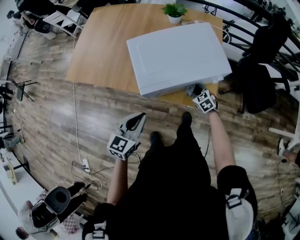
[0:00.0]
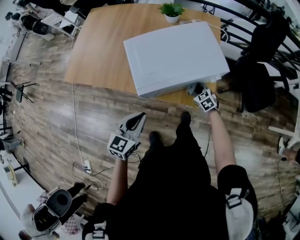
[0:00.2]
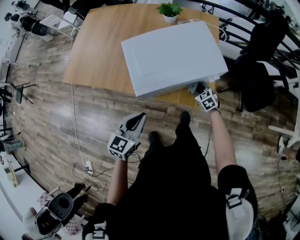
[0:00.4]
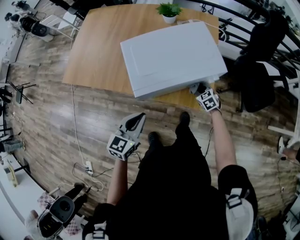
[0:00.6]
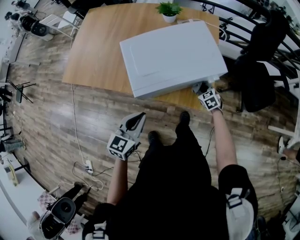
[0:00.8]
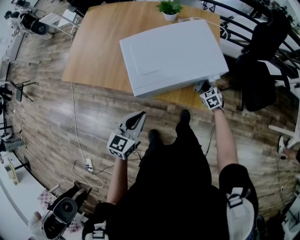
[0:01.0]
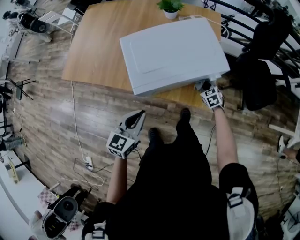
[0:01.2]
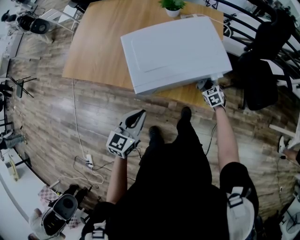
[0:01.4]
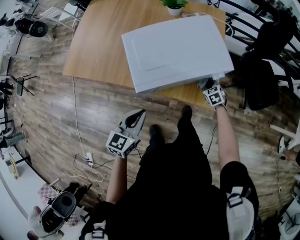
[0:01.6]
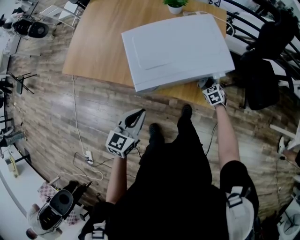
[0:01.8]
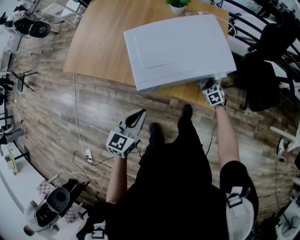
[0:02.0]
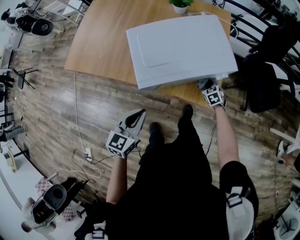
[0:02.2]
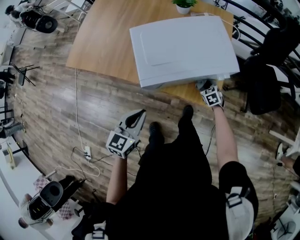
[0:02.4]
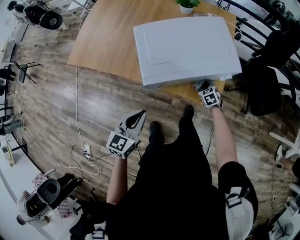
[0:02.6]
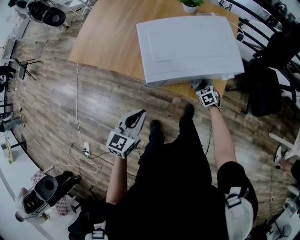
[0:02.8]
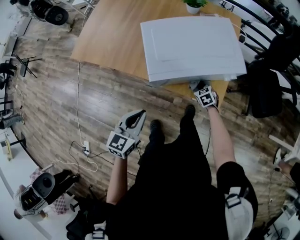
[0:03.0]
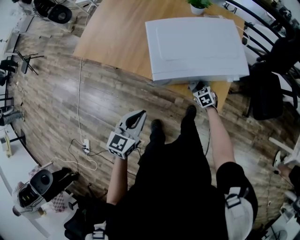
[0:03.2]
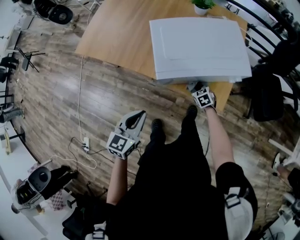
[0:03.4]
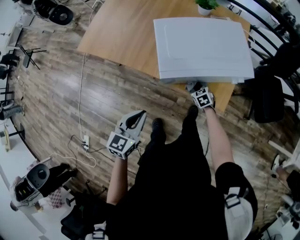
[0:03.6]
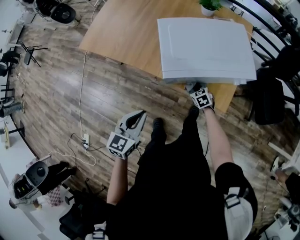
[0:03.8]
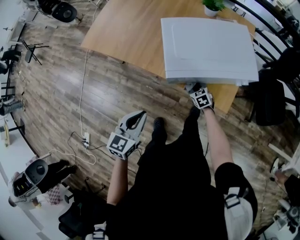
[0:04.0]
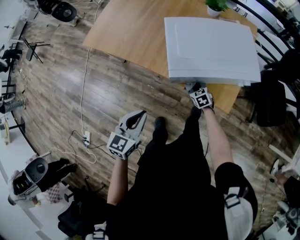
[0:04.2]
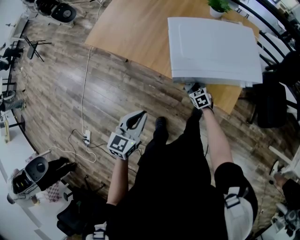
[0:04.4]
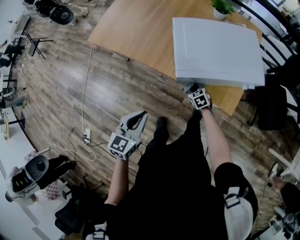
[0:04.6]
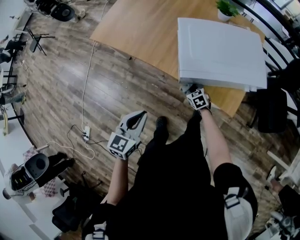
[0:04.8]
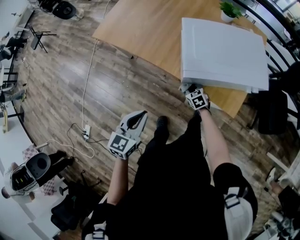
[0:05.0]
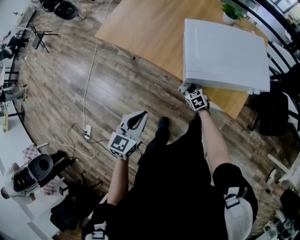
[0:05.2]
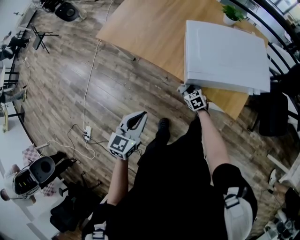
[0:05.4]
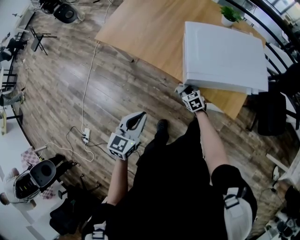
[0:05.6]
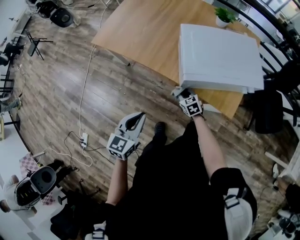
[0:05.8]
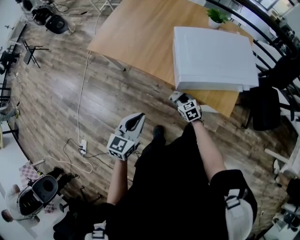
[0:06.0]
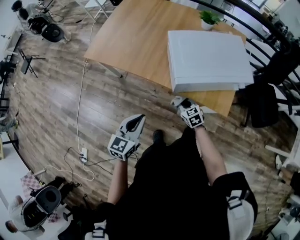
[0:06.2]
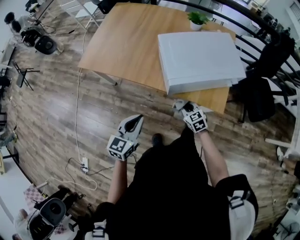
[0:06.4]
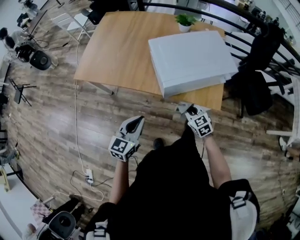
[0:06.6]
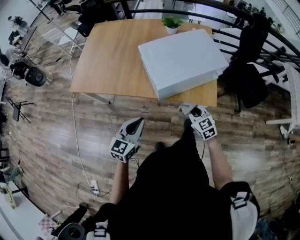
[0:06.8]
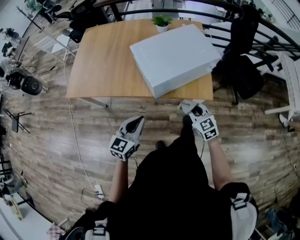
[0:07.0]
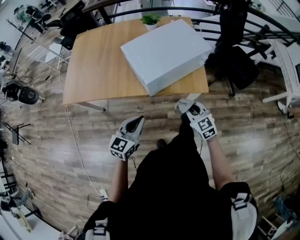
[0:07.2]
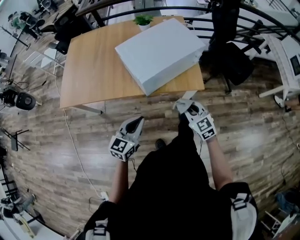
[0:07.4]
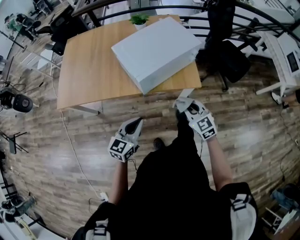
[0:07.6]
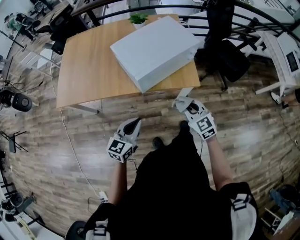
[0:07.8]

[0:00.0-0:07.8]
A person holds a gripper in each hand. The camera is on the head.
0:00.0 to 0:01.6: The right gripper heads to the right, covering some 10 cm.
0:01.6 to 0:03.2: The left gripper is displaced to the left and backward by about 10 cm. The right gripper shifts approximately 15 cm to the left.
0:03.2 to 0:04.6: The left gripper is displaced to the left by about 10 cm. The right gripper goes roughly 15 cm to the left.
0:04.6 to 0:06.2: The right gripper shifts approximately 10 cm upward, to the left and backward.
0:06.2 to 0:07.8: The right gripper goes roughly 20 cm upward, and swivels some 30 degrees, while the left gripper ends up some 10 cm from where it was, and rotates some 30 degrees.

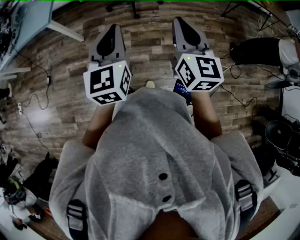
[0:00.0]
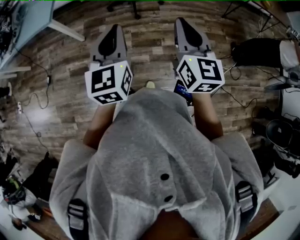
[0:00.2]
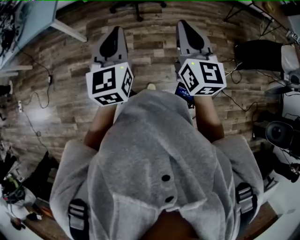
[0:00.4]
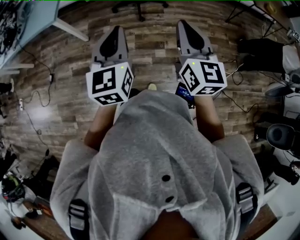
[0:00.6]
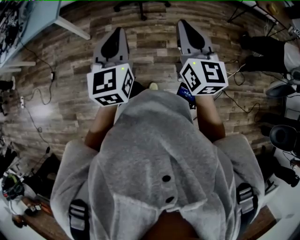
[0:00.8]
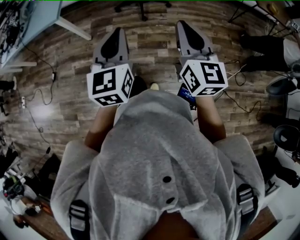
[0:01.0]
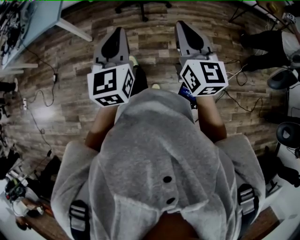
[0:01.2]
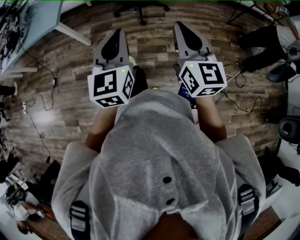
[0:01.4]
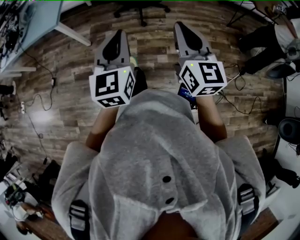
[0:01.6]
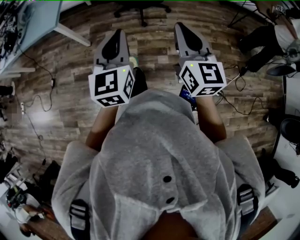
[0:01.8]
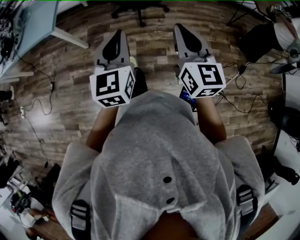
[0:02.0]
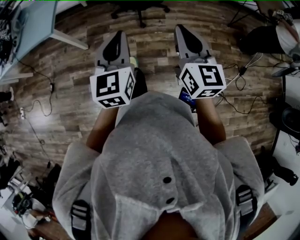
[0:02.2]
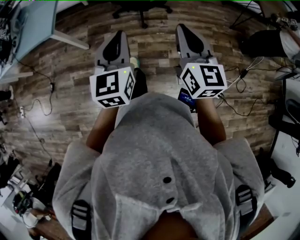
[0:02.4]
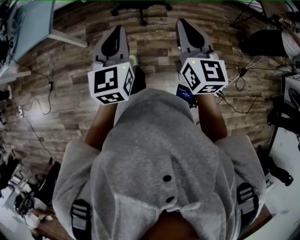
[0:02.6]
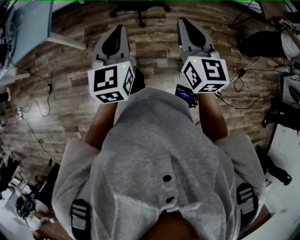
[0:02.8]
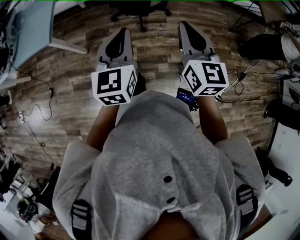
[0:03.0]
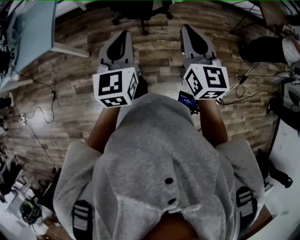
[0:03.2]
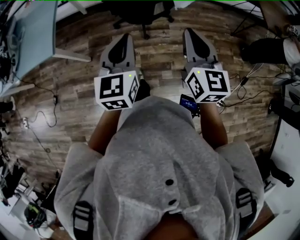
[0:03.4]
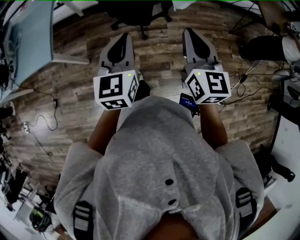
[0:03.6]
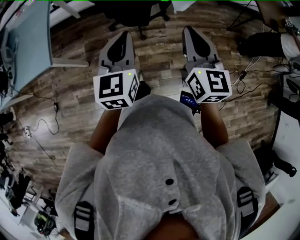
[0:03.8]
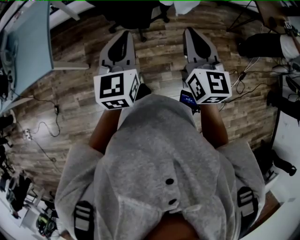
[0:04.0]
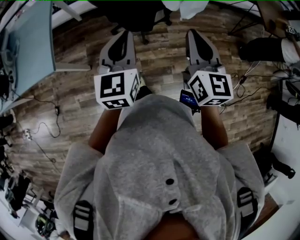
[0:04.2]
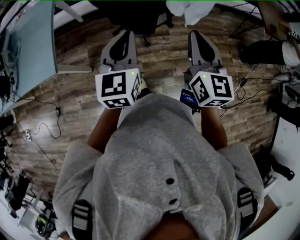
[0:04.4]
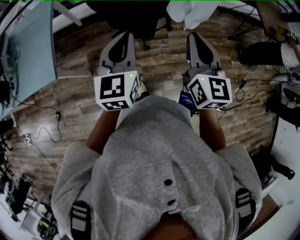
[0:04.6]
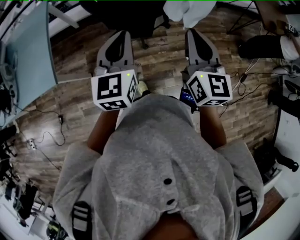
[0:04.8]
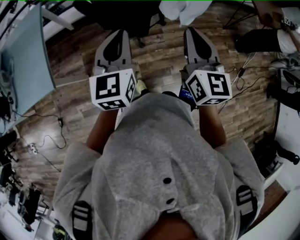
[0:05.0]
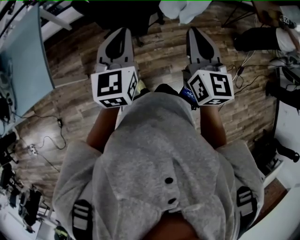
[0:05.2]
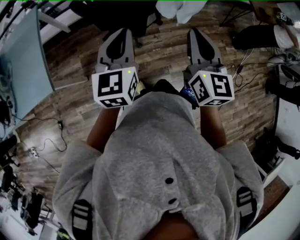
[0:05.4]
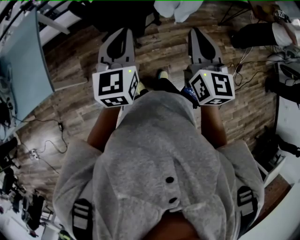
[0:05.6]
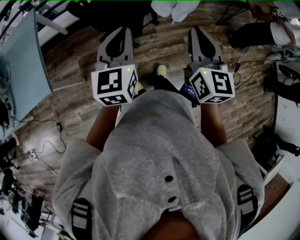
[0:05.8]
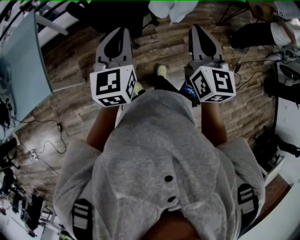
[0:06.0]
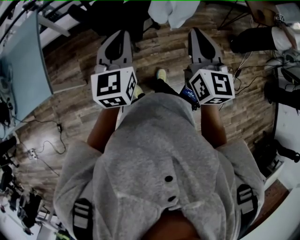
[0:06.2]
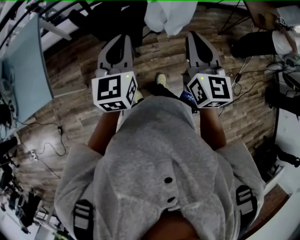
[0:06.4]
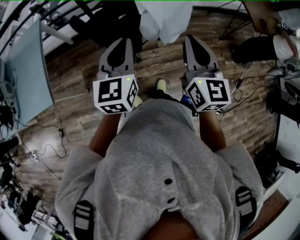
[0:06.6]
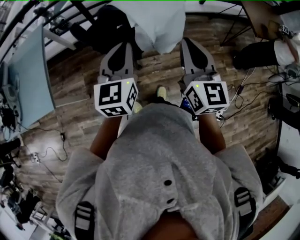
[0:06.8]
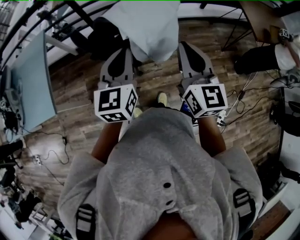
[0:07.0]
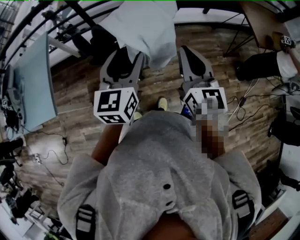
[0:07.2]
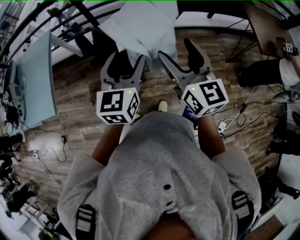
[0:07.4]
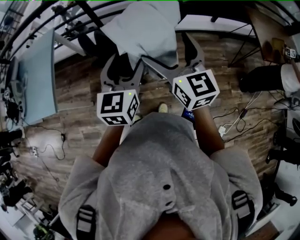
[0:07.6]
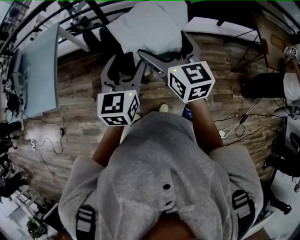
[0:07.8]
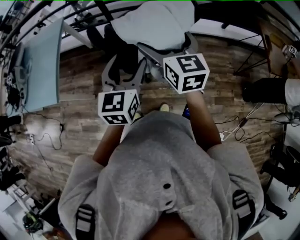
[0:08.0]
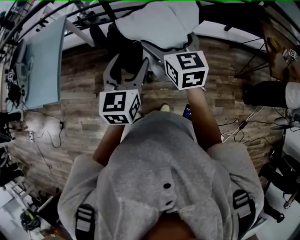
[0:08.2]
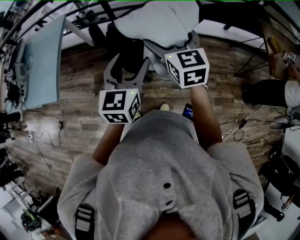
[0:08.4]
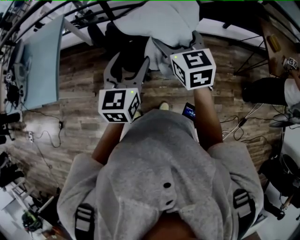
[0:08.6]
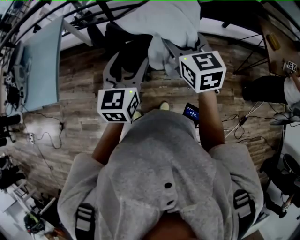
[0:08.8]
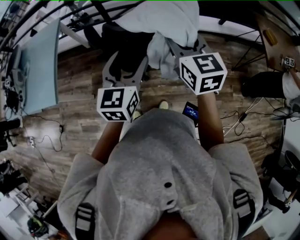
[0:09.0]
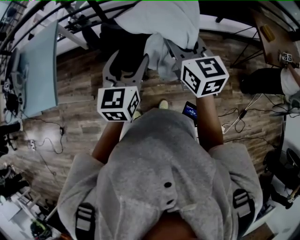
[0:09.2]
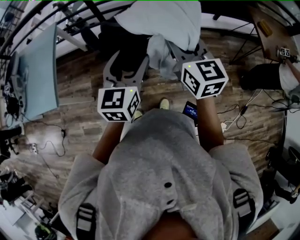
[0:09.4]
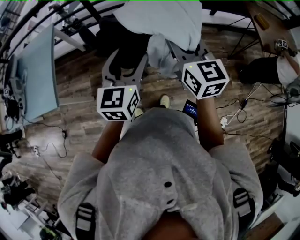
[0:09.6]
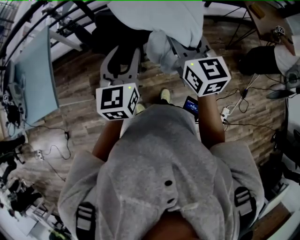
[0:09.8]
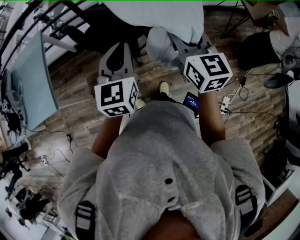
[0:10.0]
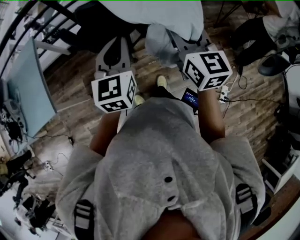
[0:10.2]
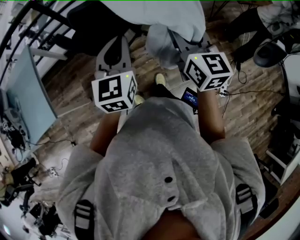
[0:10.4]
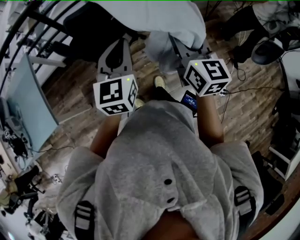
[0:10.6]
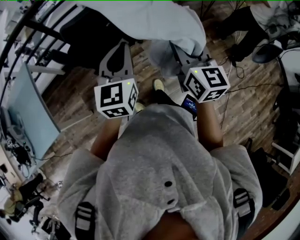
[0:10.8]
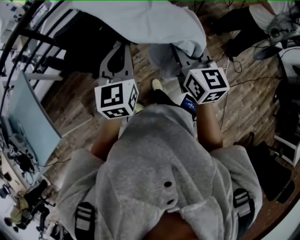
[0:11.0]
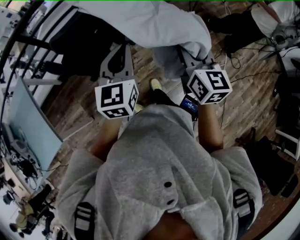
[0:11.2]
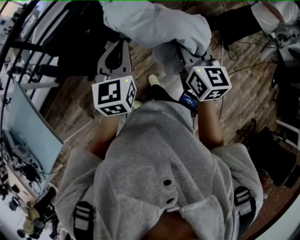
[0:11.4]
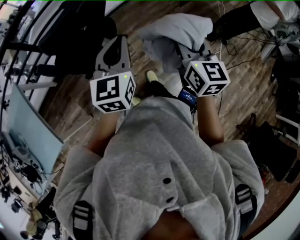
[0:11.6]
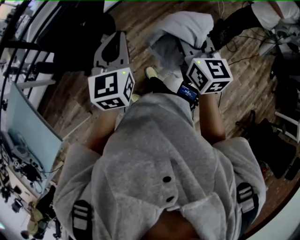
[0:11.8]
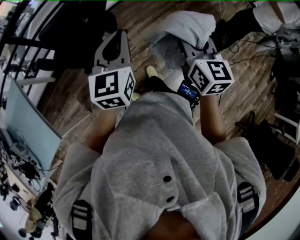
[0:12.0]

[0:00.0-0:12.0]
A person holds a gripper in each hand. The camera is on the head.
0:00.0 to 0:01.6: The grippers make only small movements.
0:01.6 to 0:03.0: Both grippers move forward, about 25 cm.
0:03.0 to 0:04.4: Both grippers move forward, about 20 cm.
0:04.4 to 0:06.0: The left gripper shifts by roughly 5 cm.
0:06.0 to 0:07.6: The left gripper is displaced to the right and forward by some 20 cm, and opens; the right gripper moves forward, about 15 cm, swivels about 30 degrees, and opens its fingers.
0:07.6 to 0:09.0: The right gripper closes.
0:09.0 to 0:10.4: The right gripper moves backward, some 15 cm, and turns by approximately 30 degrees; the left gripper goes about 10 cm backward, and closes its fingers.
0:10.4 to 0:12.0: The left gripper moves to the right, roughly 10 cm, while the right gripper goes some 15 cm to the right and backward, and changes its angle by approximately 20 degrees.

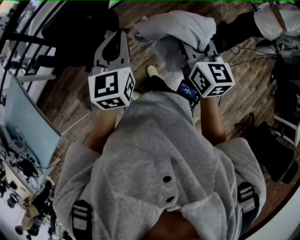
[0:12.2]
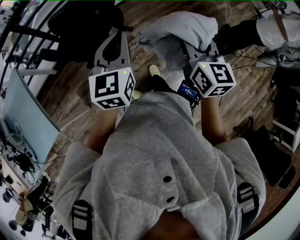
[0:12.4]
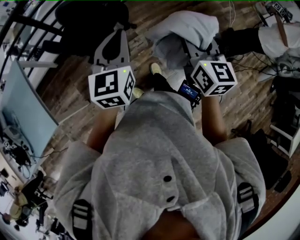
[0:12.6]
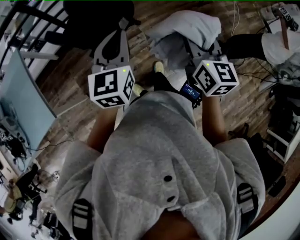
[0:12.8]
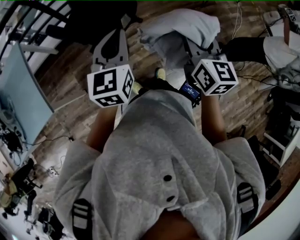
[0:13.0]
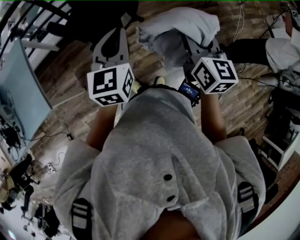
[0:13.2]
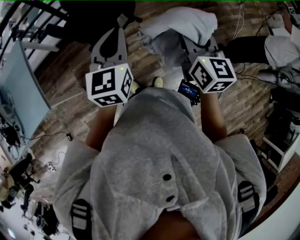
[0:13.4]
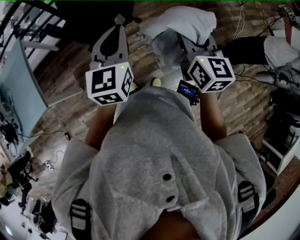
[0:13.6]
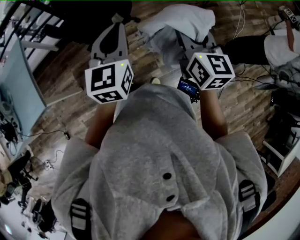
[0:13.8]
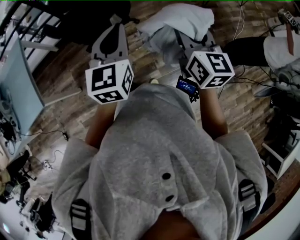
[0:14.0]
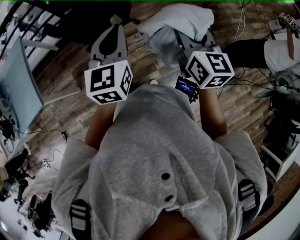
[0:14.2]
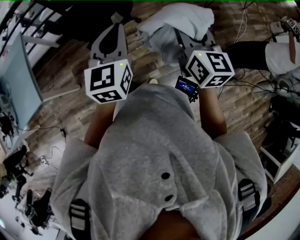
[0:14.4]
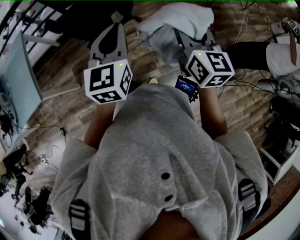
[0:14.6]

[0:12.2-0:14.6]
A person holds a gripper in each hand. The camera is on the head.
0:12.2 to 0:13.4: The left gripper travels to the left by roughly 5 cm.
0:13.4 to 0:14.6: The grippers both shift to the right by roughly 5 cm.

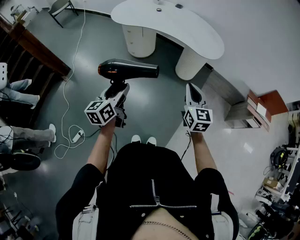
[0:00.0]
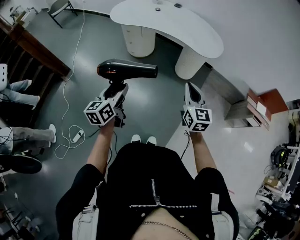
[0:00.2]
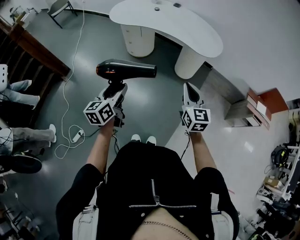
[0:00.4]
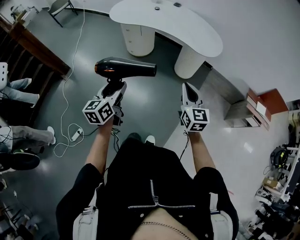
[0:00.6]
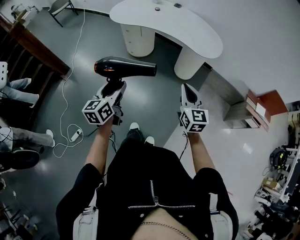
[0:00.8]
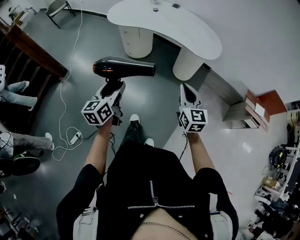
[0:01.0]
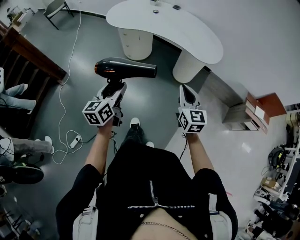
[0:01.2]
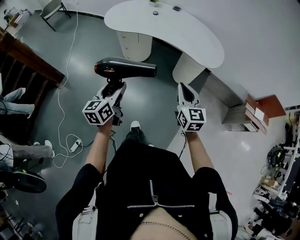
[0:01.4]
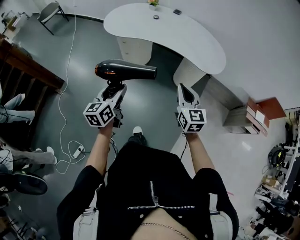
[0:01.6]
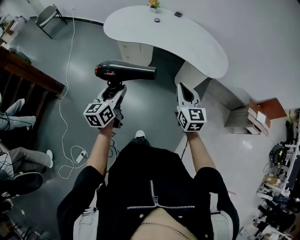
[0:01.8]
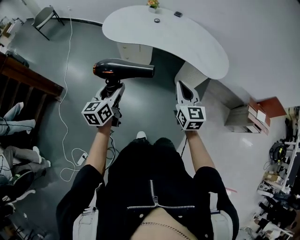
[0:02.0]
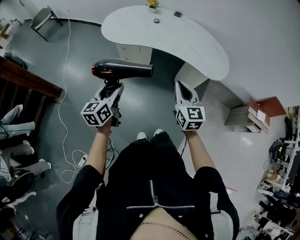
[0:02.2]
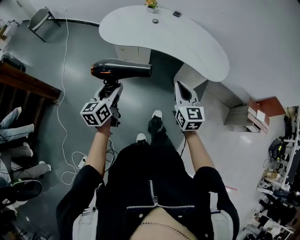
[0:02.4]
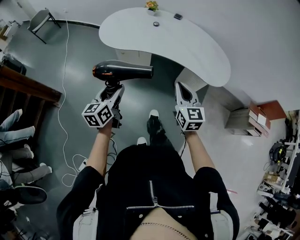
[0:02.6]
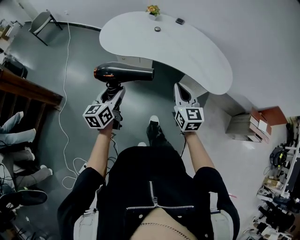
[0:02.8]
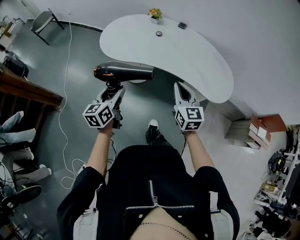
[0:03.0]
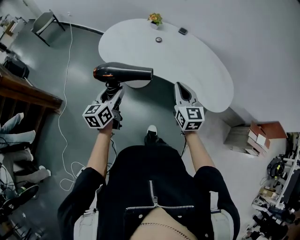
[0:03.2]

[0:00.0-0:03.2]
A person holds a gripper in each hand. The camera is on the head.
0:00.0 to 0:01.6: The left gripper heads forward, covering about 15 cm. Meanwhile the right gripper is displaced forward and to the left by roughly 15 cm.
0:01.6 to 0:03.2: Both grippers travel together forward, approximately 30 cm.
